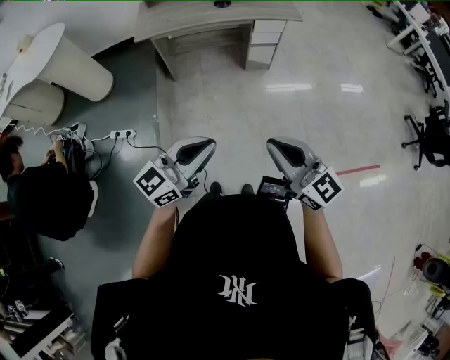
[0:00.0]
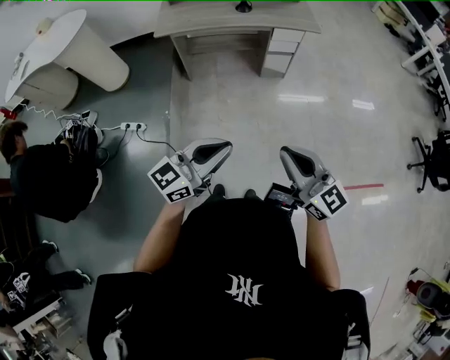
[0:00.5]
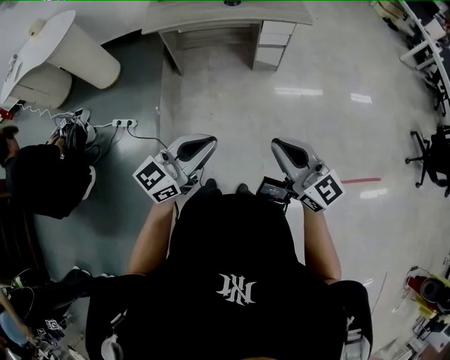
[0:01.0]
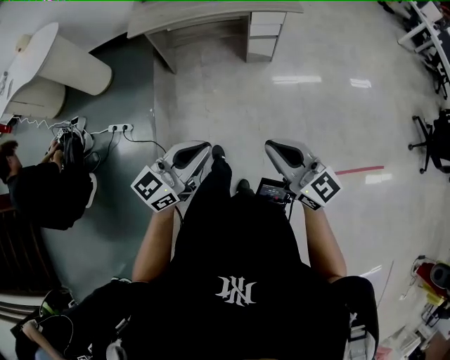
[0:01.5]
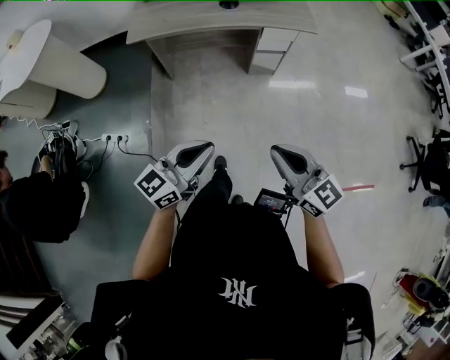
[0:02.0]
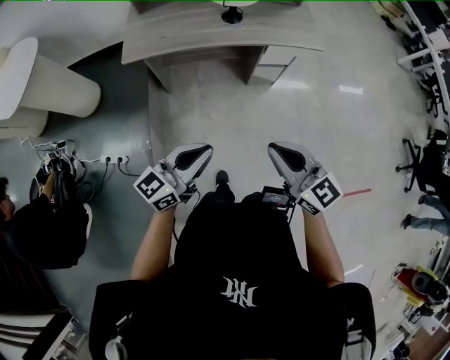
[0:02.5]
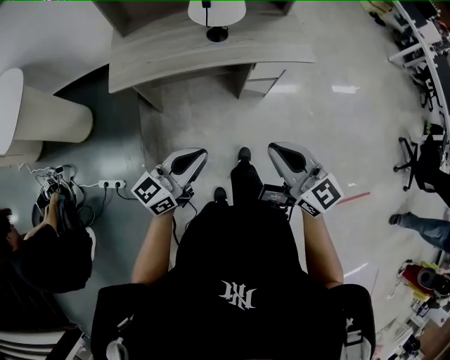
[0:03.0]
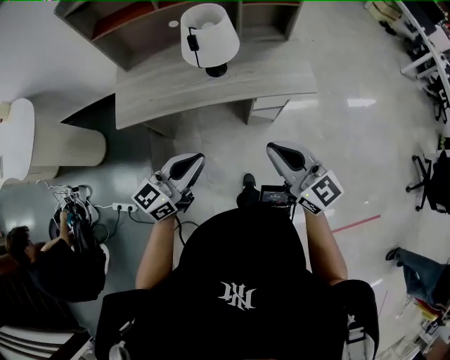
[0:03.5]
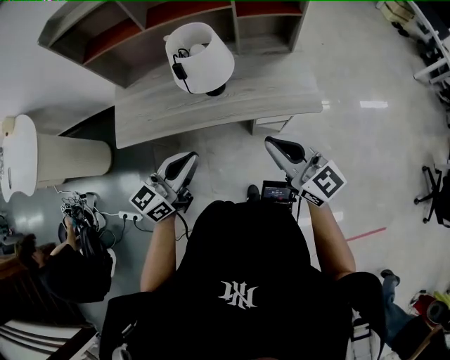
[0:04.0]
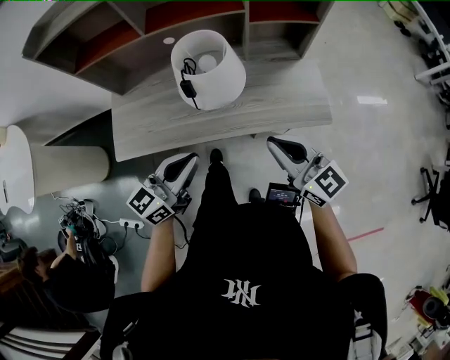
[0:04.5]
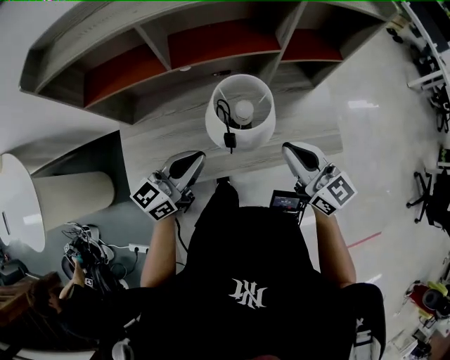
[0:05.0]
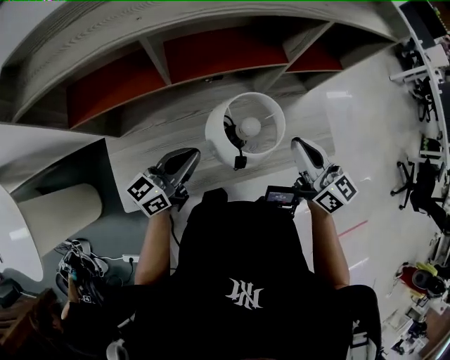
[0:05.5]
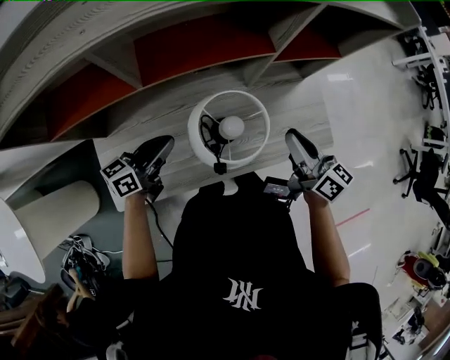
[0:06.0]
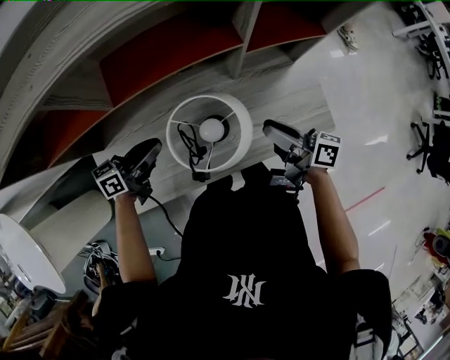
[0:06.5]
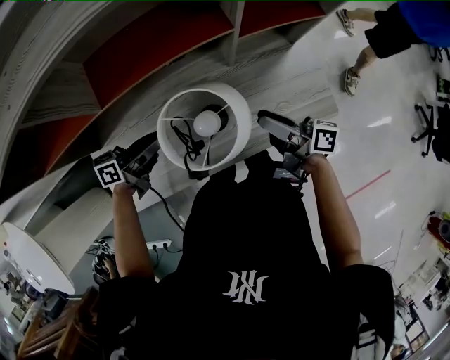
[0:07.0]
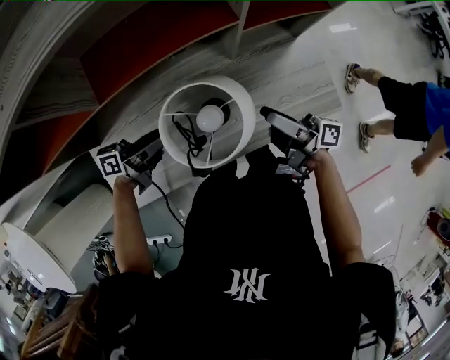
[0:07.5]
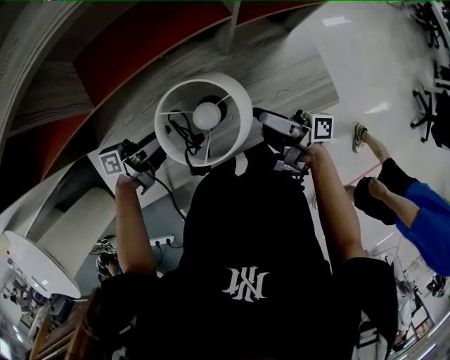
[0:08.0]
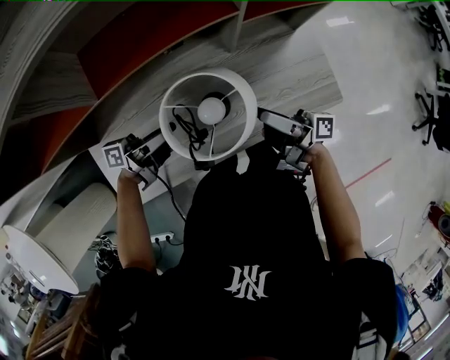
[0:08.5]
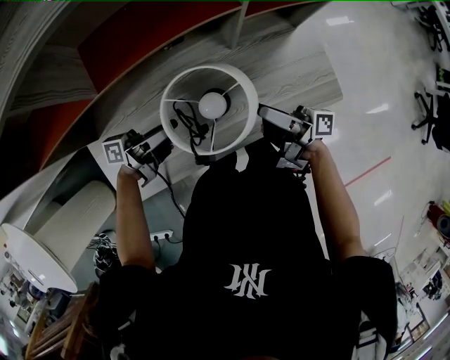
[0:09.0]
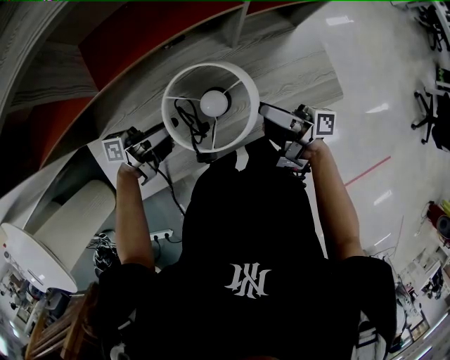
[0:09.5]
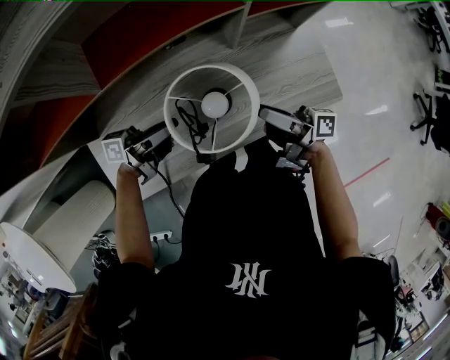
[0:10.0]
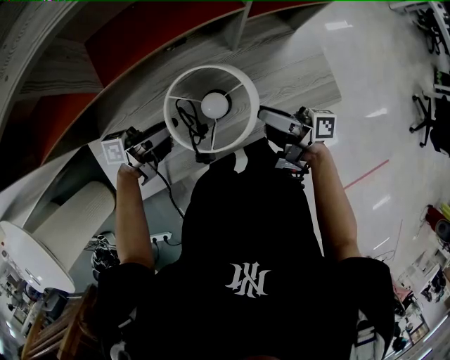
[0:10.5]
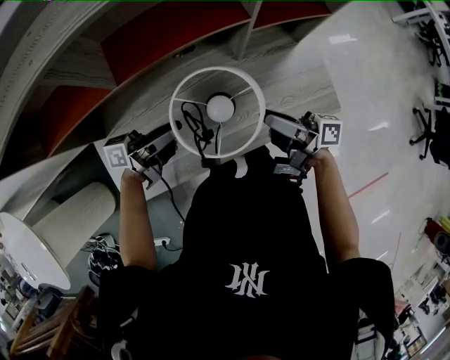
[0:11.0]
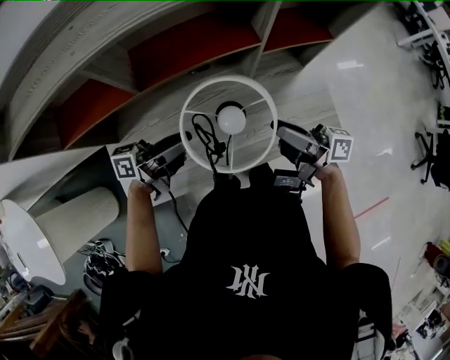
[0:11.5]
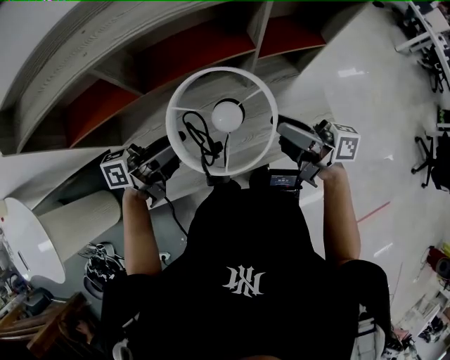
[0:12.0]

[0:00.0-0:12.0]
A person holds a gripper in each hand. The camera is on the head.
0:00.0 to 0:02.0: The two grippers go some 15 cm forward.
0:02.0 to 0:04.0: Both grippers are carried forward, roughly 50 cm.
0:04.0 to 0:06.0: The right gripper shifts roughly 30 cm forward, and swivels approximately 40 degrees; the left gripper is displaced forward and to the left by some 35 cm, and turns by approximately 30 degrees.
0:06.0 to 0:08.0: The left gripper goes some 5 cm downward, swivels some 40 degrees, and opens its fingers; the right gripper travels downward by roughly 10 cm, twists approximately 40 degrees clockwise, seen from behind, and opens its fingers.
0:08.0 to 0:10.0: The left gripper closes up.
0:10.0 to 0:12.0: The two grippers go about 15 cm upward. The left gripper changes its angle by some 20 degrees.

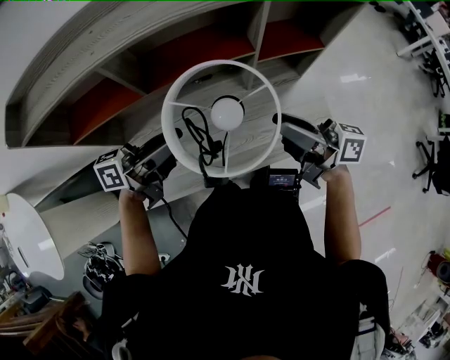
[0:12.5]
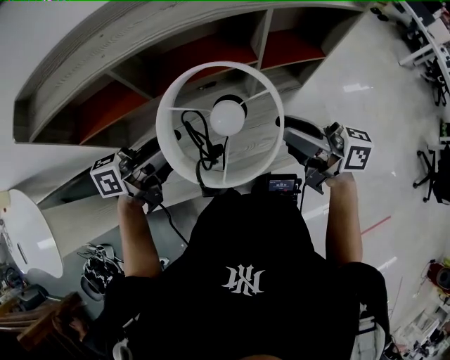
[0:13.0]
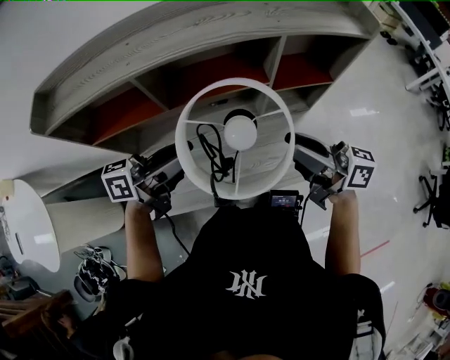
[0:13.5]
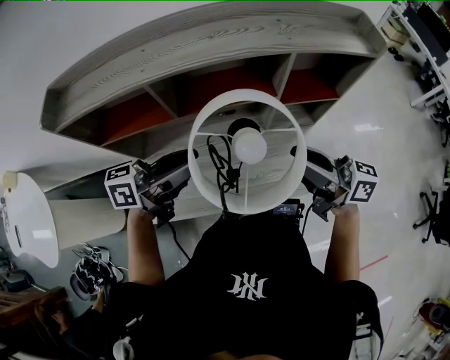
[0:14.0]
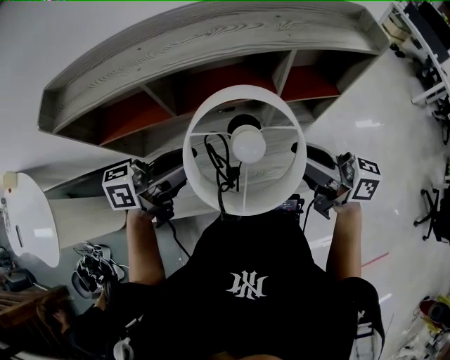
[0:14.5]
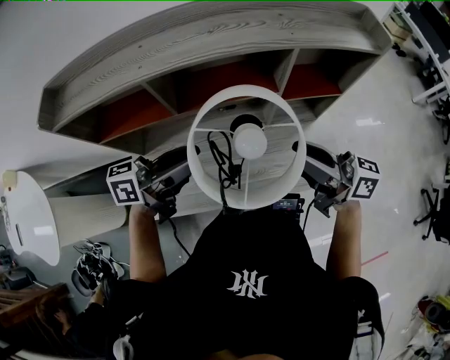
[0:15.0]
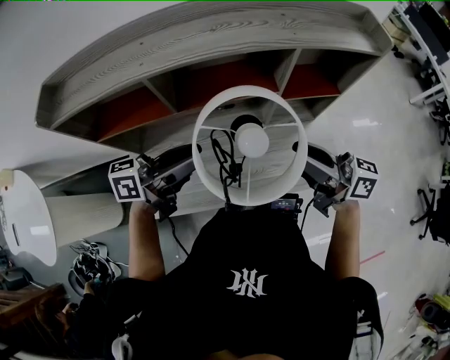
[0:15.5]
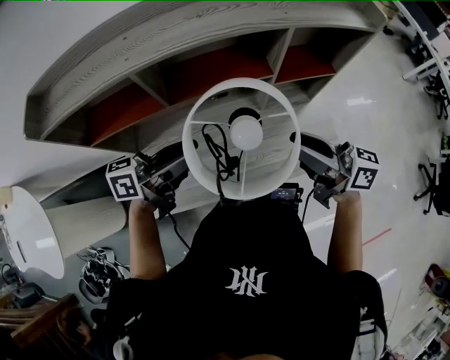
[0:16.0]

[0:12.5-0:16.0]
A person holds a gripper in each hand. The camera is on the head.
0:12.5 to 0:14.5: Both grippers move upward, approximately 5 cm.
0:14.5 to 0:16.0: The grippers make only small movements.

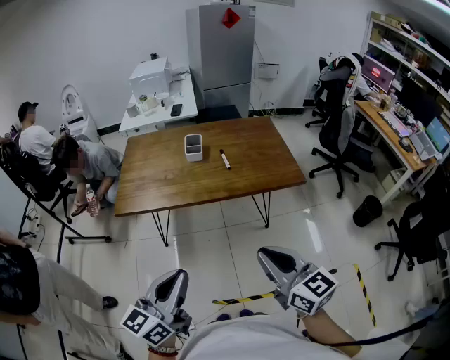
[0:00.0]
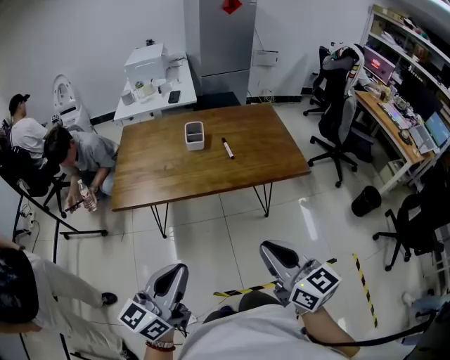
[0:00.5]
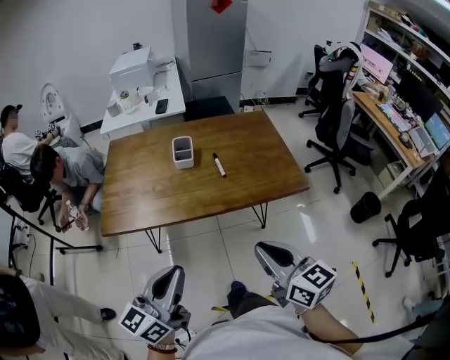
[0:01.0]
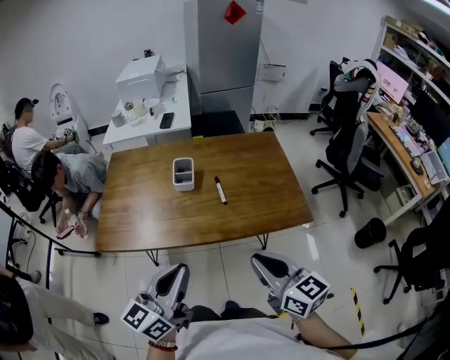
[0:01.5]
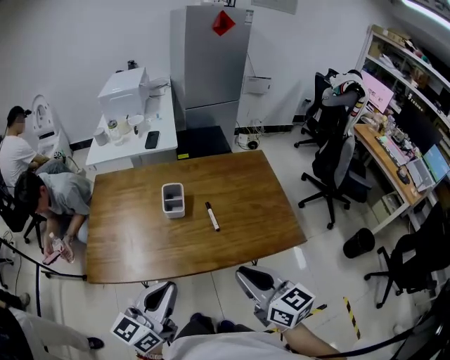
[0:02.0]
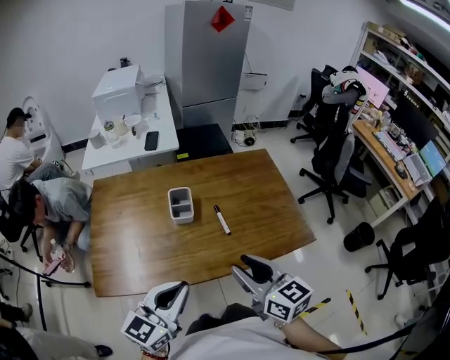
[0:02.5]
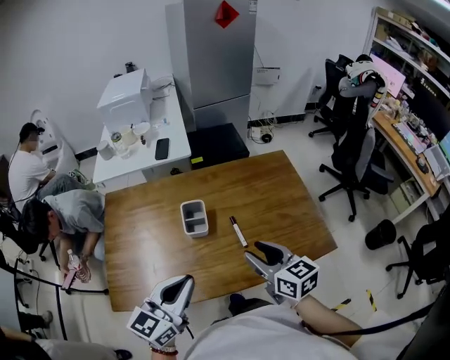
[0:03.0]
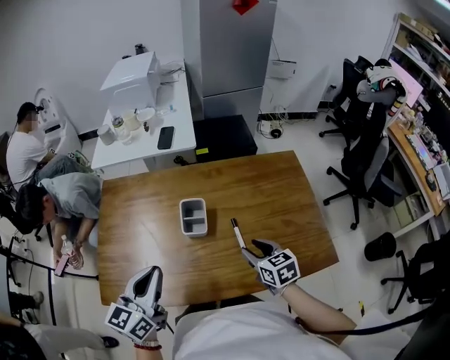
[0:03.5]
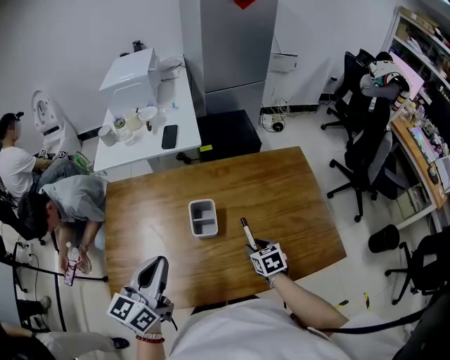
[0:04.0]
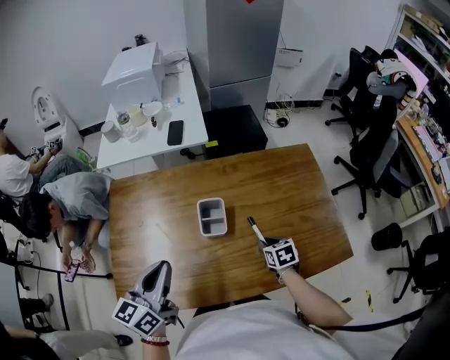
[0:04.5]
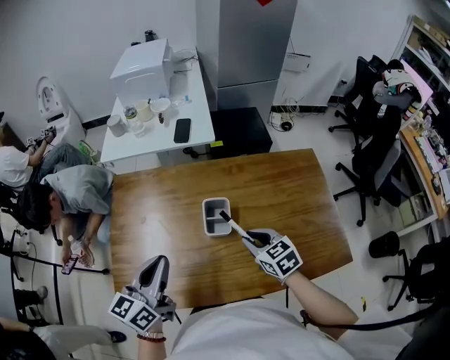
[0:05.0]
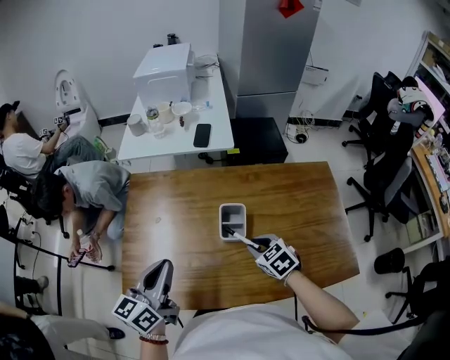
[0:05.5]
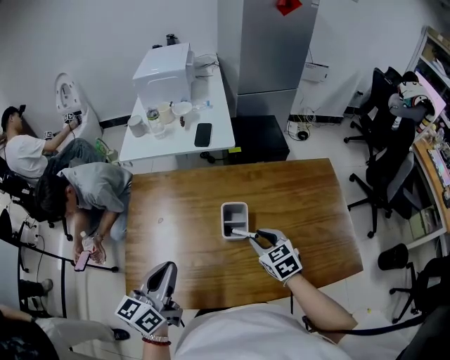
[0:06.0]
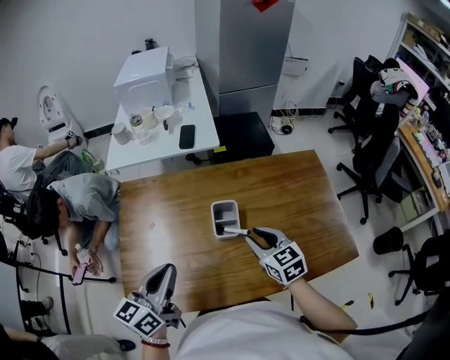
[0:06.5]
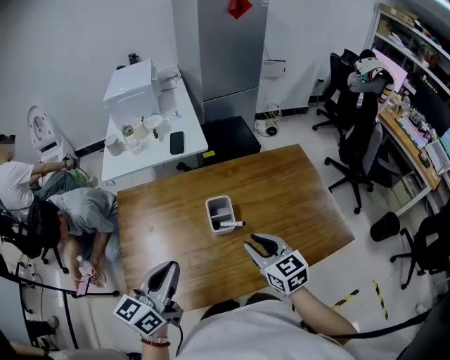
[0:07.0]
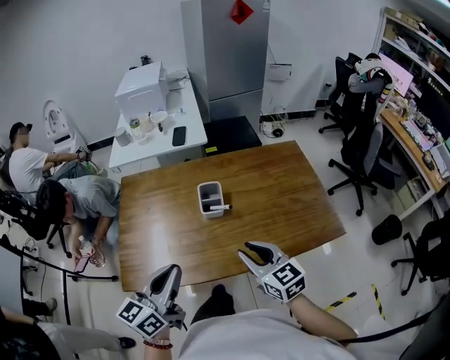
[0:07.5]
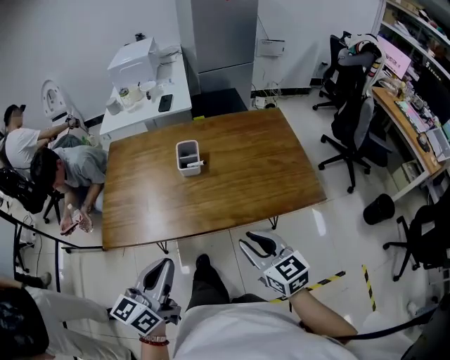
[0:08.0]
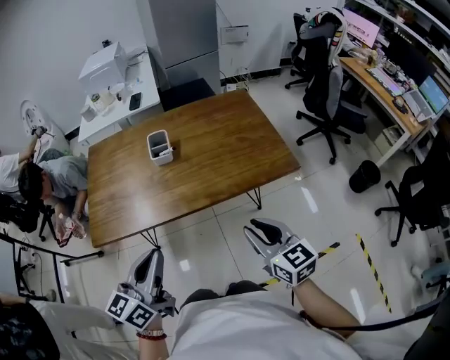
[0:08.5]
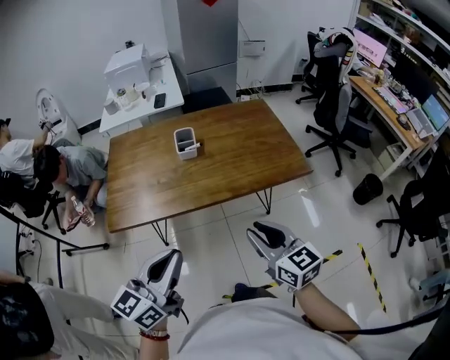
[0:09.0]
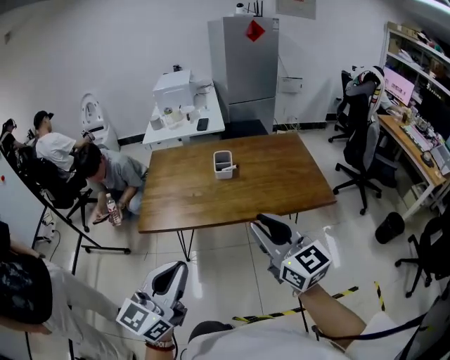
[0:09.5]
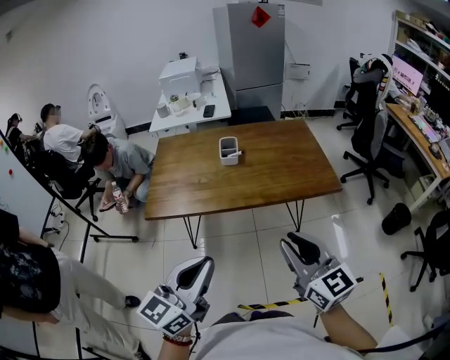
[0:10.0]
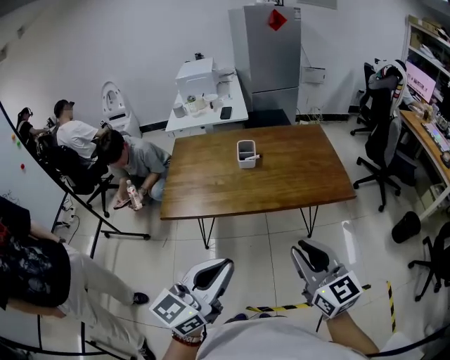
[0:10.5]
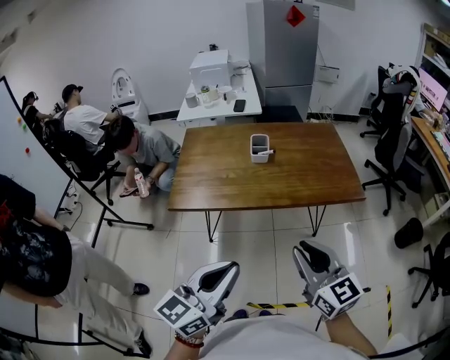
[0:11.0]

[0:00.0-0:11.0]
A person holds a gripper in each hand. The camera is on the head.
0:00.0 to 0:02.0: The grippers both shift forward by approximately 30 cm.
0:02.0 to 0:03.5: The left gripper heads forward and to the left, covering approximately 20 cm. The right gripper shifts about 30 cm forward and downward, turns by roughly 30 degrees, and opens up.
0:03.5 to 0:05.5: The right gripper travels to the left and forward by approximately 15 cm, and swivels about 30 degrees. Meanwhile the left gripper goes approximately 10 cm to the left.
0:05.5 to 0:07.5: The right gripper is displaced backward and upward by roughly 20 cm, and angles its fingers upward, by some 30 degrees, while the left gripper travels backward and to the right by roughly 15 cm.
0:07.5 to 0:09.0: The grippers both shift backward by roughly 25 cm.
0:09.0 to 0:11.0: The left gripper heads backward, covering some 10 cm; the right gripper travels backward, upward and to the left by some 10 cm.
